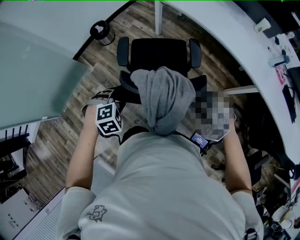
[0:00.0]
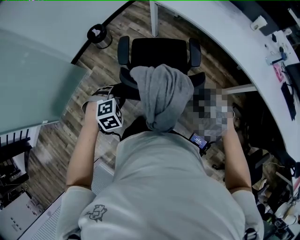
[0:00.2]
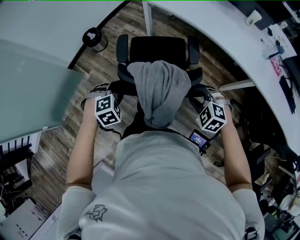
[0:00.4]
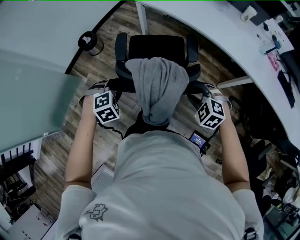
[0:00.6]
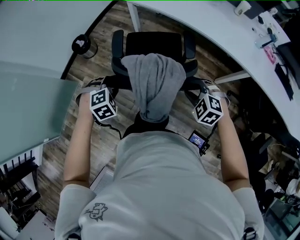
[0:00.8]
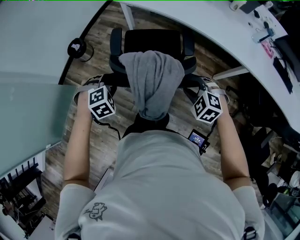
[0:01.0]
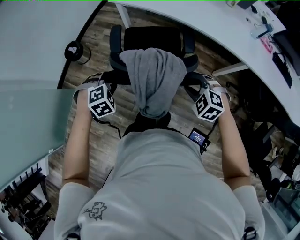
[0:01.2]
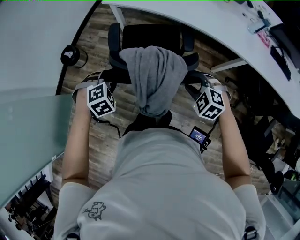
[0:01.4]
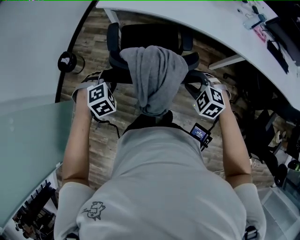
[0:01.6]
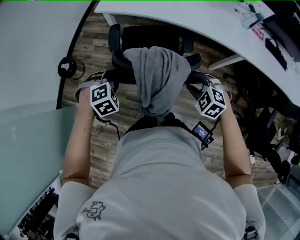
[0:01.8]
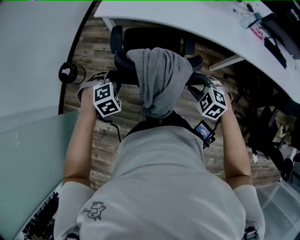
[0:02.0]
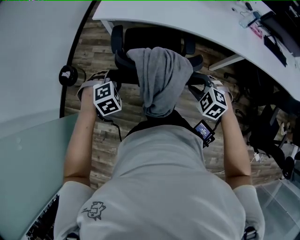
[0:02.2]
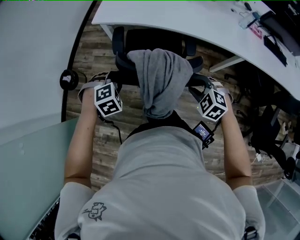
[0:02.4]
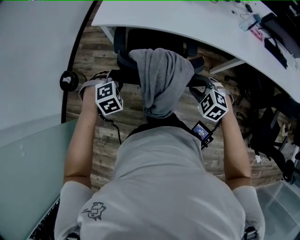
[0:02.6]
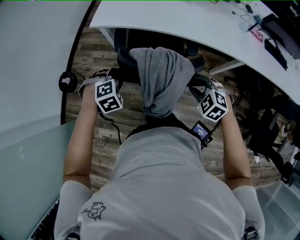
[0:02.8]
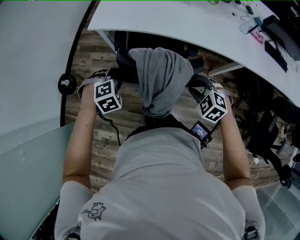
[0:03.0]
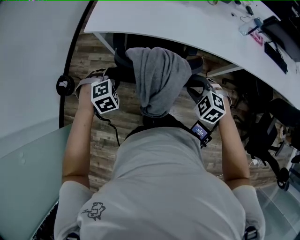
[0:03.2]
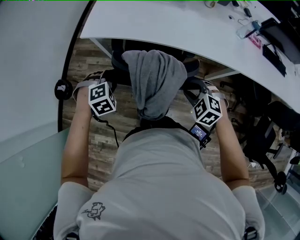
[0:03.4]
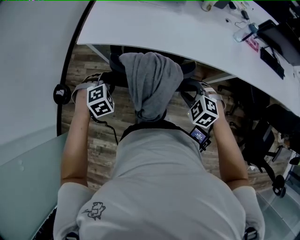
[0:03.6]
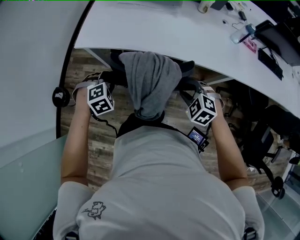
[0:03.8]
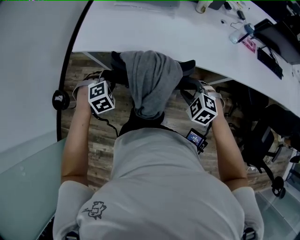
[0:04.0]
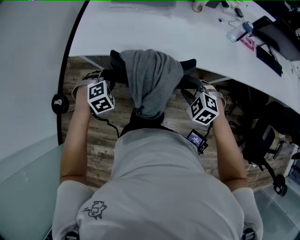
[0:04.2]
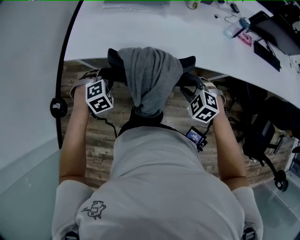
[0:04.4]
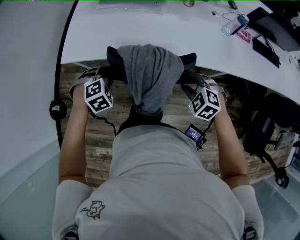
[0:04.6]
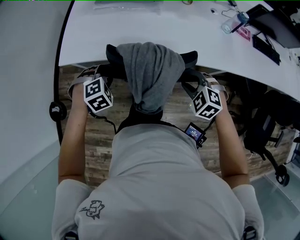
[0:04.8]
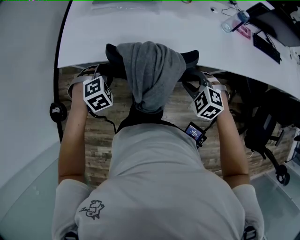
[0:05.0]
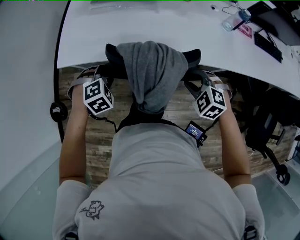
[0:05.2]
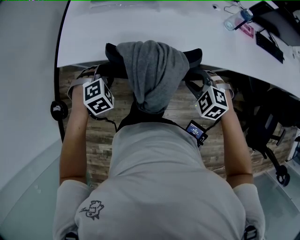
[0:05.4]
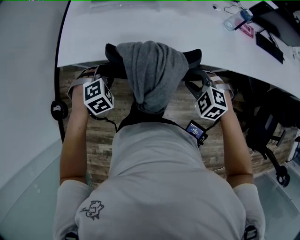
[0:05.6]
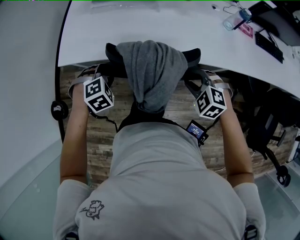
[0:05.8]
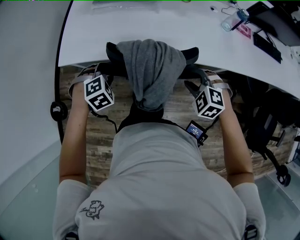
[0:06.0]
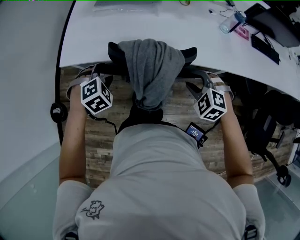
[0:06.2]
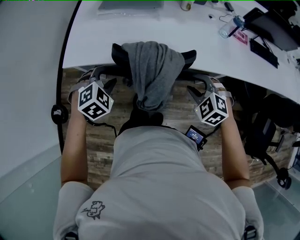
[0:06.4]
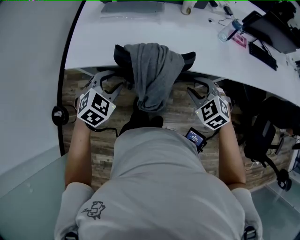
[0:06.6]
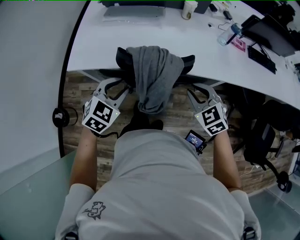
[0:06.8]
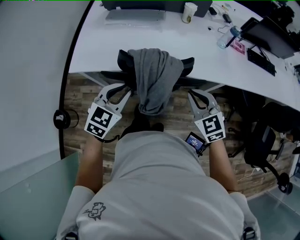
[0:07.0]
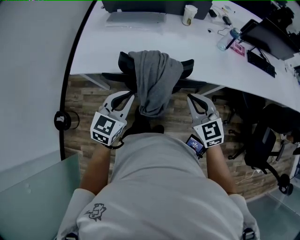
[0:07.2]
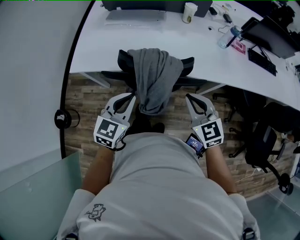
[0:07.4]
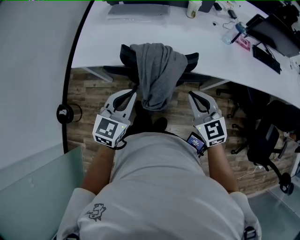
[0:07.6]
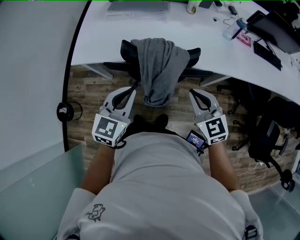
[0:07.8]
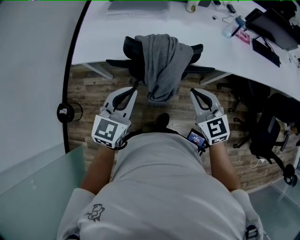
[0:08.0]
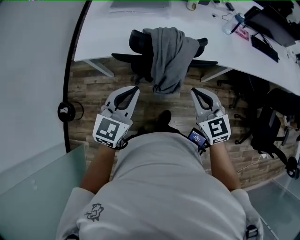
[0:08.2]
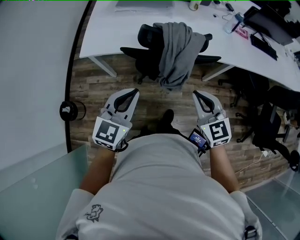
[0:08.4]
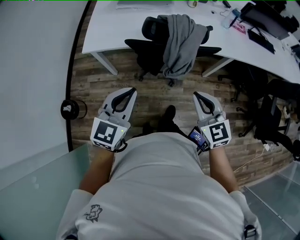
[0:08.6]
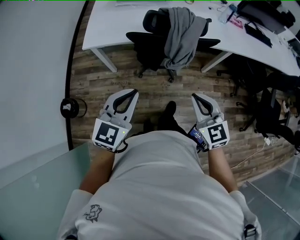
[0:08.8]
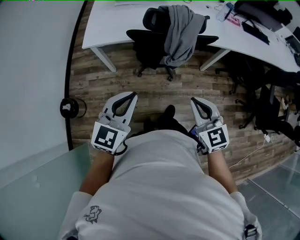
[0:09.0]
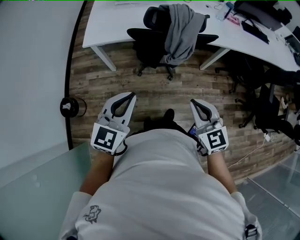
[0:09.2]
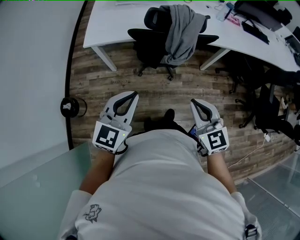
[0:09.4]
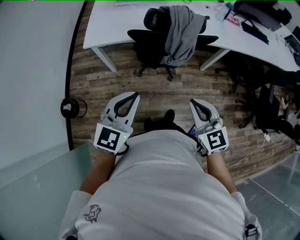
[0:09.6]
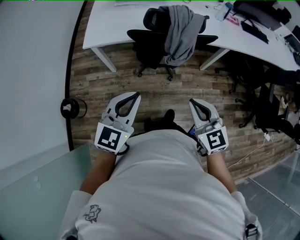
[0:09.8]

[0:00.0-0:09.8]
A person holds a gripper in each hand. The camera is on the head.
0:00.0 to 0:01.4: The right gripper goes about 15 cm forward. The left gripper moves forward, some 25 cm.
0:01.4 to 0:02.8: The left gripper shifts approximately 15 cm forward. The right gripper moves forward, roughly 10 cm.
0:02.8 to 0:04.2: Both grippers travel together forward and to the right, approximately 20 cm.
0:04.2 to 0:05.6: The two grippers go some 10 cm forward and to the right.
0:05.6 to 0:07.0: Both grippers travel together upward and backward, roughly 15 cm. The left gripper tips its fingers upward by about 40 degrees; the right gripper turns by roughly 40 degrees, and closes.
0:07.0 to 0:08.4: The two grippers go approximately 20 cm backward and to the left.
0:08.4 to 0:09.8: The two grippers go roughly 15 cm backward.

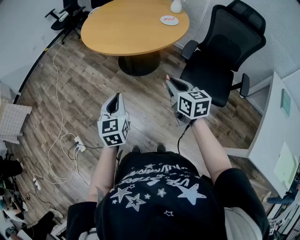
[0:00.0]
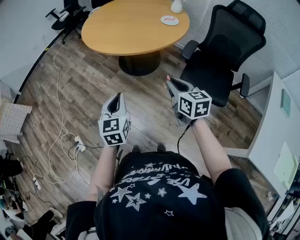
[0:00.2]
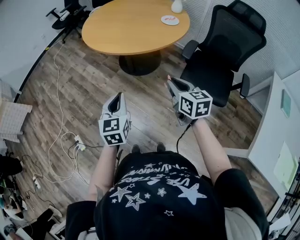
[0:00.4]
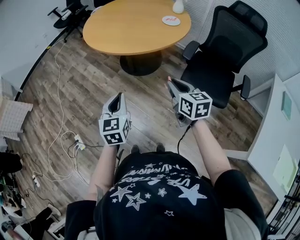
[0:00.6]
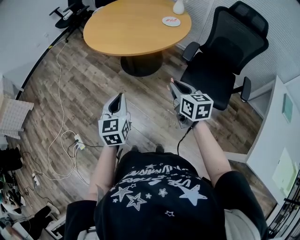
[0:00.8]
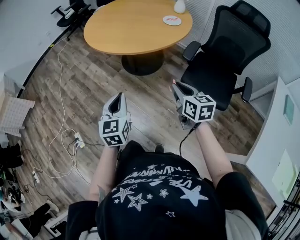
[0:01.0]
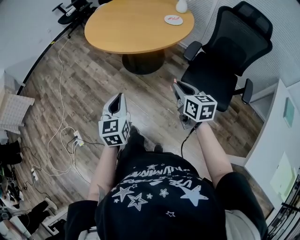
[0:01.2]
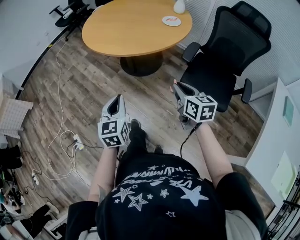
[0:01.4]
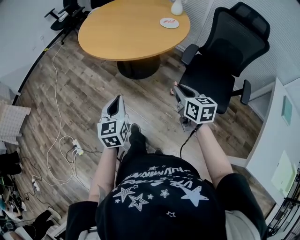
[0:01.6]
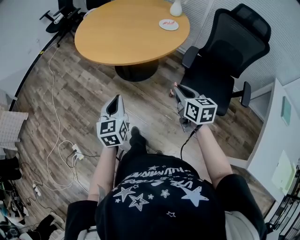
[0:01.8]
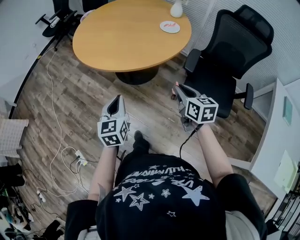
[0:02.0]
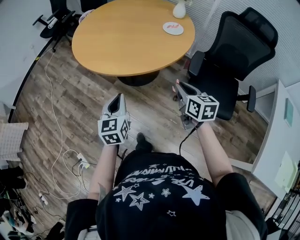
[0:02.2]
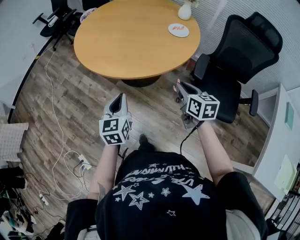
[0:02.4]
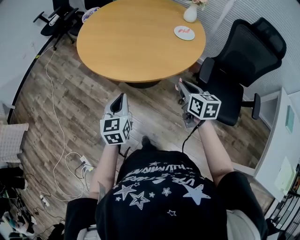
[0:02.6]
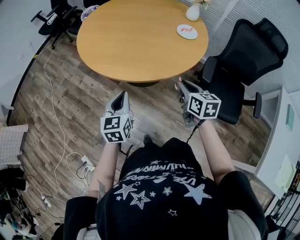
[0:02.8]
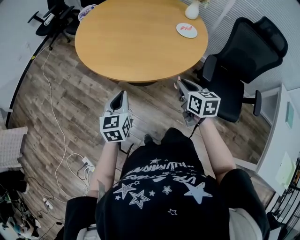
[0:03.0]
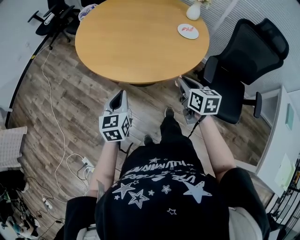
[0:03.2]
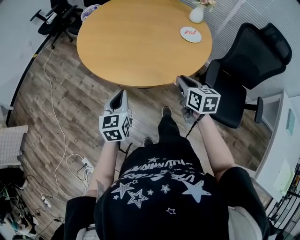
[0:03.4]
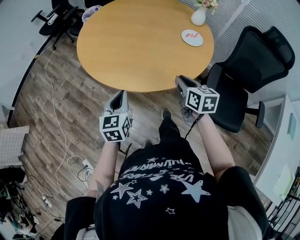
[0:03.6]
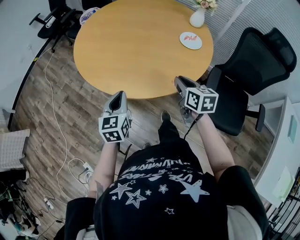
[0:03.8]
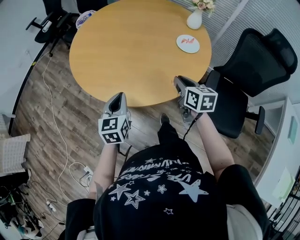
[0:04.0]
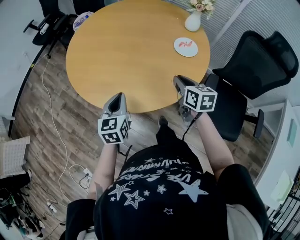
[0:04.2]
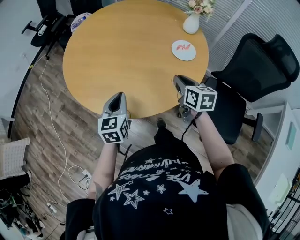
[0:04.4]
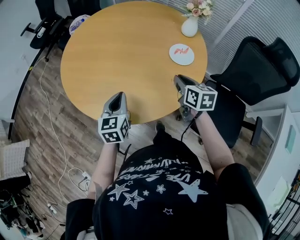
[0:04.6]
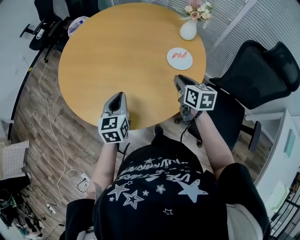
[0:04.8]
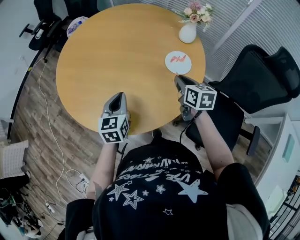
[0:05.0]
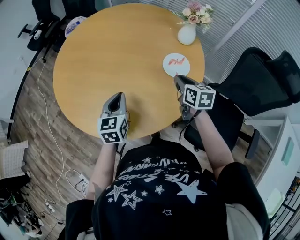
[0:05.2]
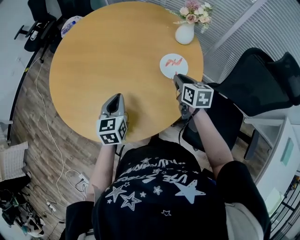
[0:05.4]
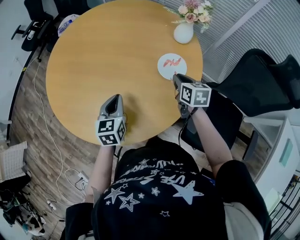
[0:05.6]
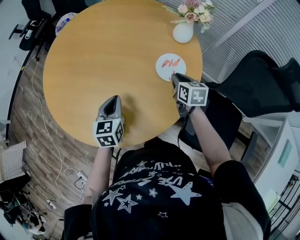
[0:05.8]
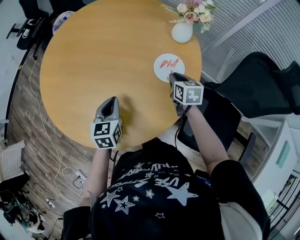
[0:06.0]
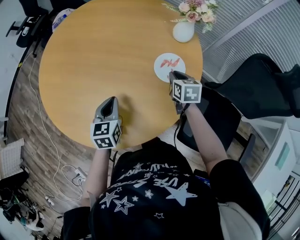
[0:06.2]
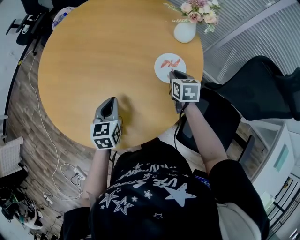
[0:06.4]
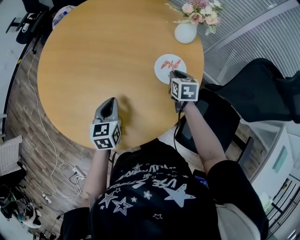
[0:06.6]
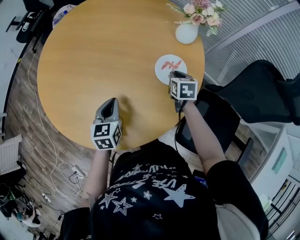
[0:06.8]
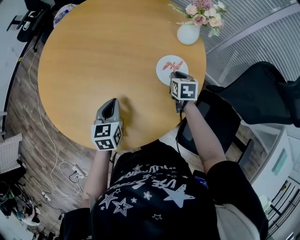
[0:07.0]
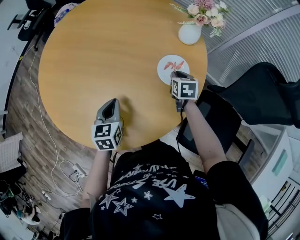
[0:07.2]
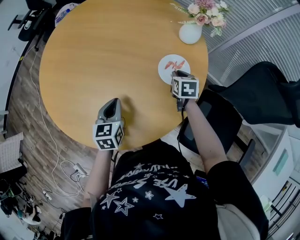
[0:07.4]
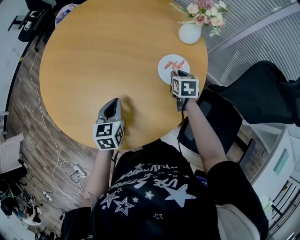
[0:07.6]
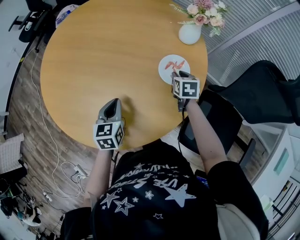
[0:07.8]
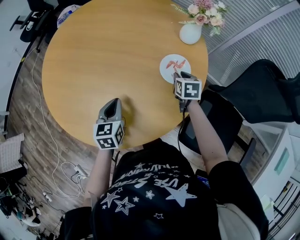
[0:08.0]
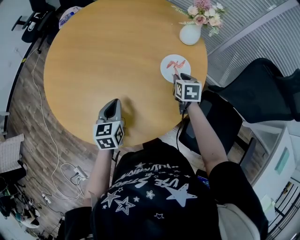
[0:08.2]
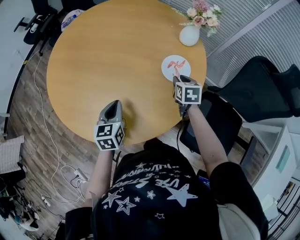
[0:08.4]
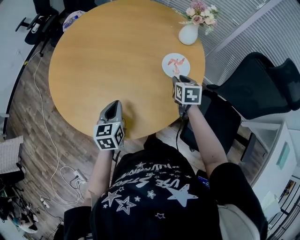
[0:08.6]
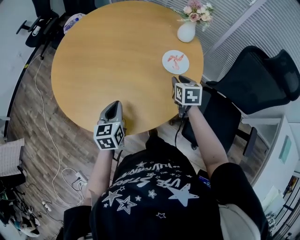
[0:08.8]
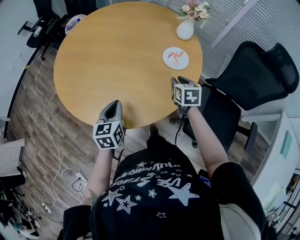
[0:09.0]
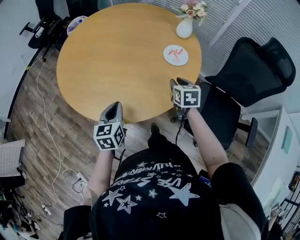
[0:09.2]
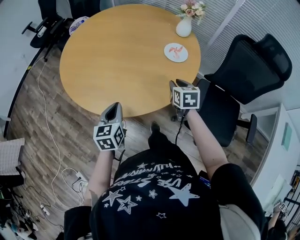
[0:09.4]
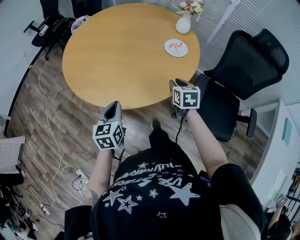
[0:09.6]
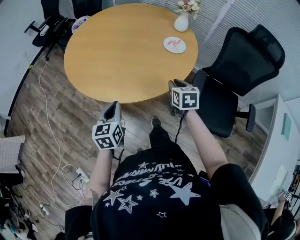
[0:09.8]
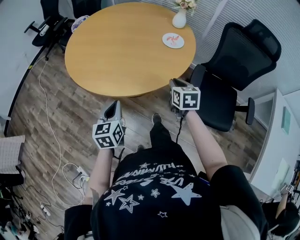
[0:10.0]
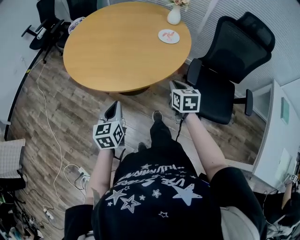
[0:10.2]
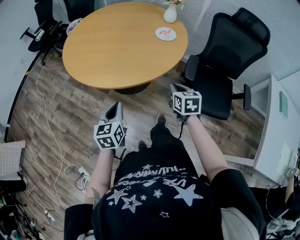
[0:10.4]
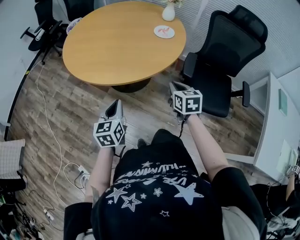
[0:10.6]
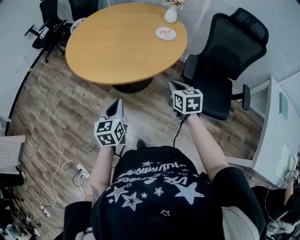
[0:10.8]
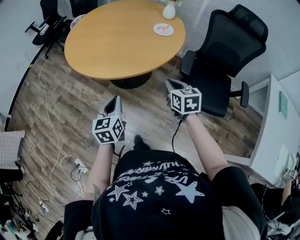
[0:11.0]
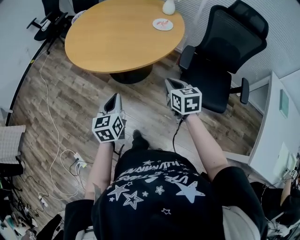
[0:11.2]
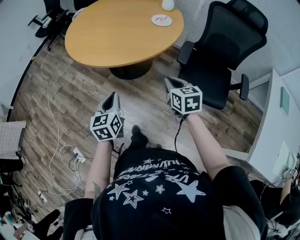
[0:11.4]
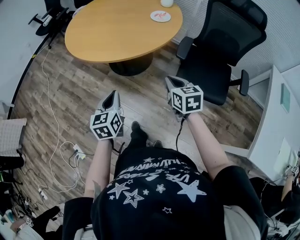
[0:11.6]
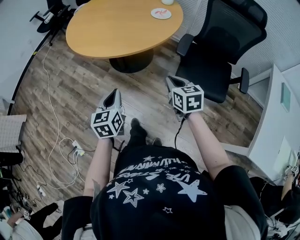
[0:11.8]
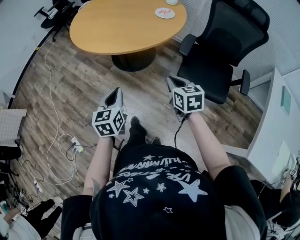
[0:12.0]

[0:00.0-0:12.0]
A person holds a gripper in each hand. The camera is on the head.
0:00.0 to 0:01.6: The left gripper moves roughly 5 cm. The right gripper moves to the right, roughly 5 cm.
0:01.6 to 0:03.0: Both grippers travel together forward and to the left, approximately 25 cm.
0:03.0 to 0:04.4: The left gripper shifts approximately 20 cm forward and to the right, while the right gripper goes roughly 20 cm forward.
0:04.4 to 0:06.0: The two grippers go roughly 20 cm forward, to the right and downward.
0:06.0 to 0:07.6: The right gripper goes about 5 cm downward.
0:07.6 to 0:09.0: The left gripper shifts about 15 cm backward, to the left and upward; the right gripper travels backward and upward by approximately 20 cm.
0:09.0 to 0:10.4: The two grippers go about 30 cm backward. The right gripper closes its fingers.
0:10.4 to 0:12.0: The left gripper shifts approximately 20 cm backward and to the right. The right gripper goes approximately 20 cm backward.

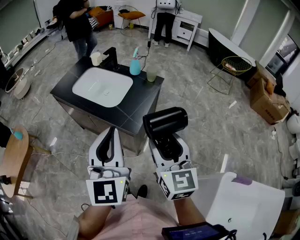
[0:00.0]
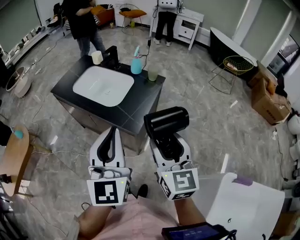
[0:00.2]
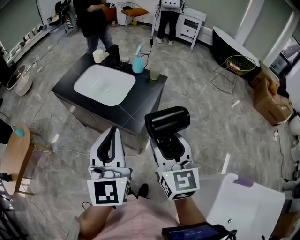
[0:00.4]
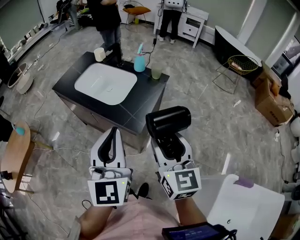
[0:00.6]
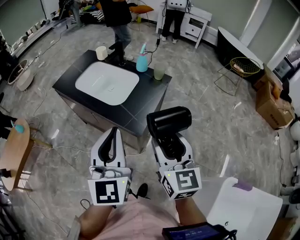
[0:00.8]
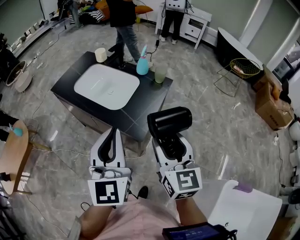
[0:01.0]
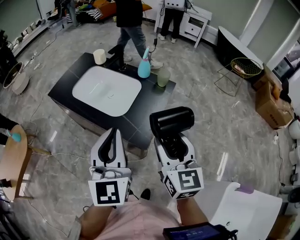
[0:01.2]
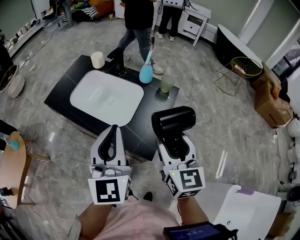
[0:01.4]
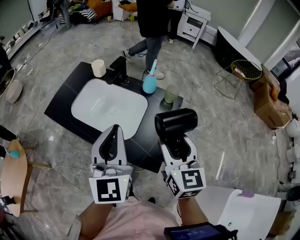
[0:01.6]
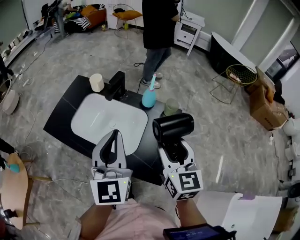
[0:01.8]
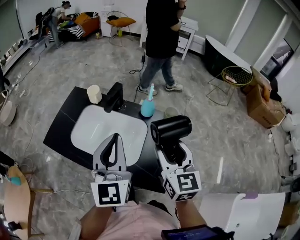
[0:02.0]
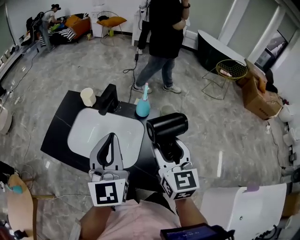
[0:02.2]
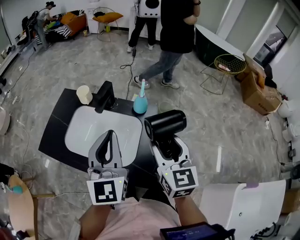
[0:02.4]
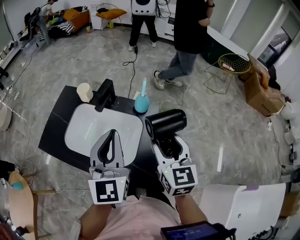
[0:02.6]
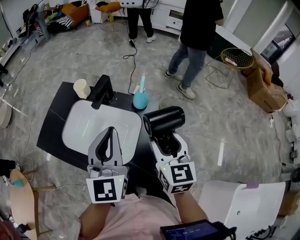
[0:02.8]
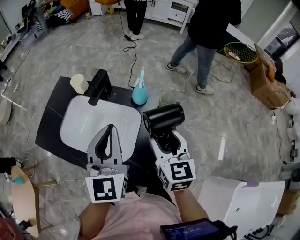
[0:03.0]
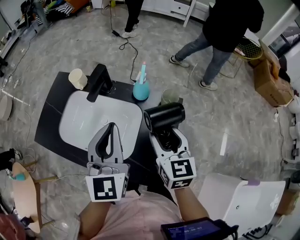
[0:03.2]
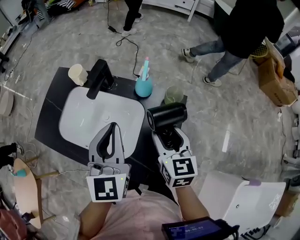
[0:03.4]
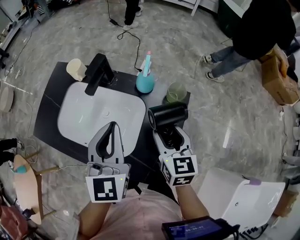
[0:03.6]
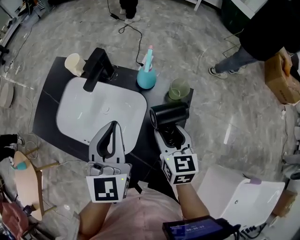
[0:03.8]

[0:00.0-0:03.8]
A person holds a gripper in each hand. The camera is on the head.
0:00.0 to 0:01.2: Both grippers move forward, roughly 10 cm.
0:01.2 to 0:02.6: The grippers both shift forward by approximately 25 cm.
0:02.6 to 0:03.8: The right gripper heads downward, covering roughly 15 cm. The left gripper travels downward by approximately 10 cm.
